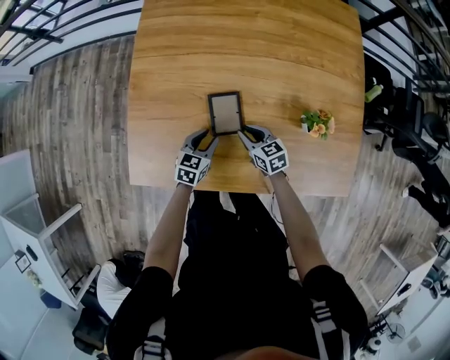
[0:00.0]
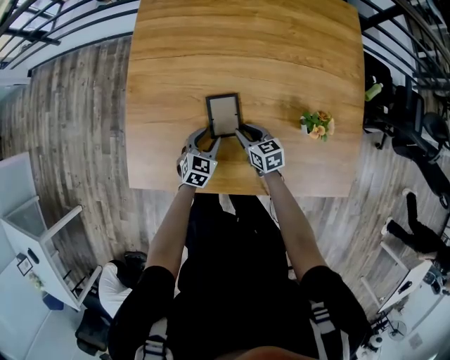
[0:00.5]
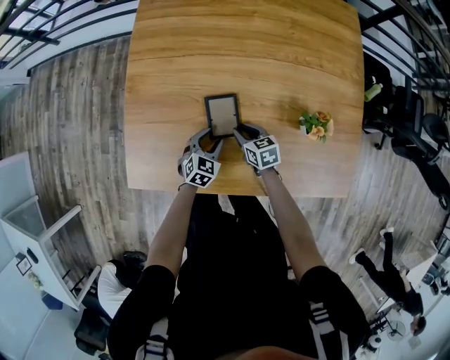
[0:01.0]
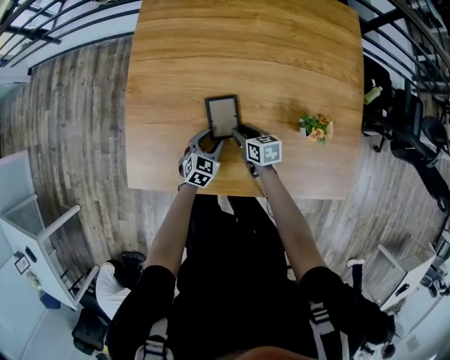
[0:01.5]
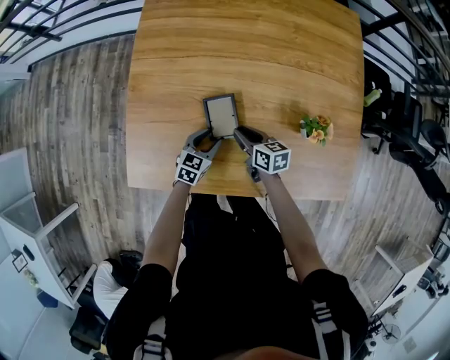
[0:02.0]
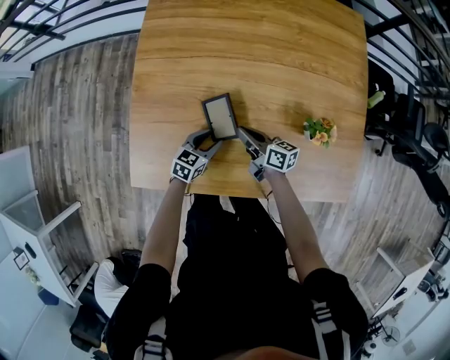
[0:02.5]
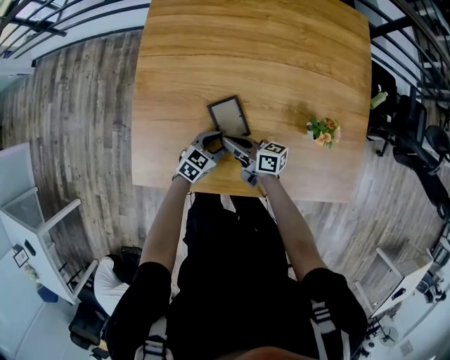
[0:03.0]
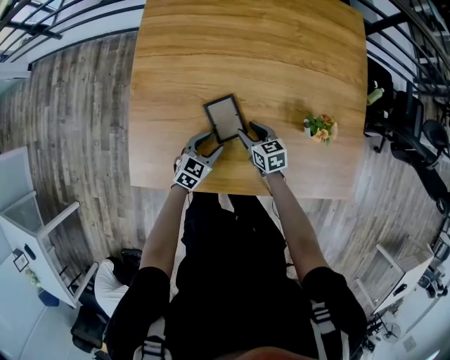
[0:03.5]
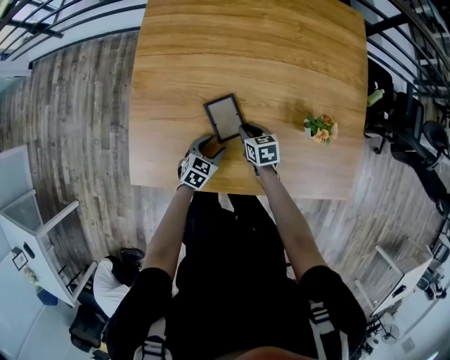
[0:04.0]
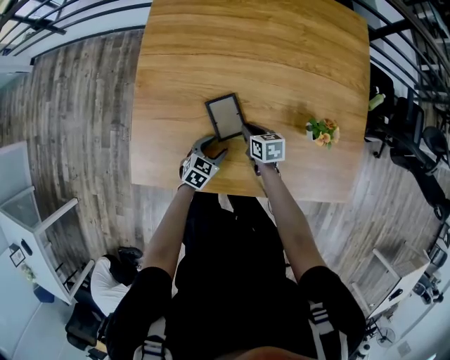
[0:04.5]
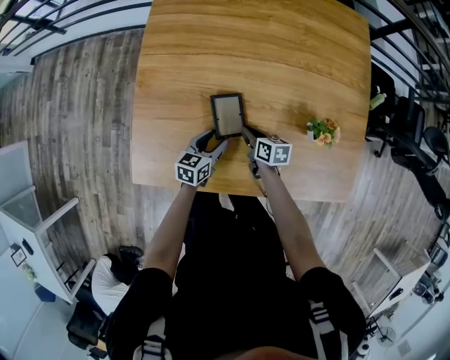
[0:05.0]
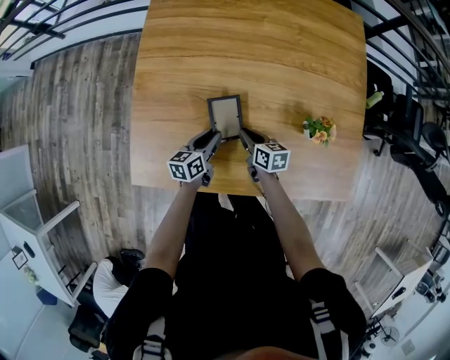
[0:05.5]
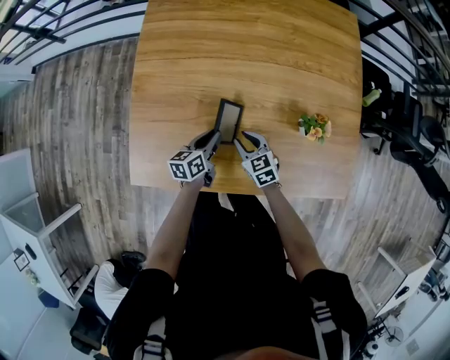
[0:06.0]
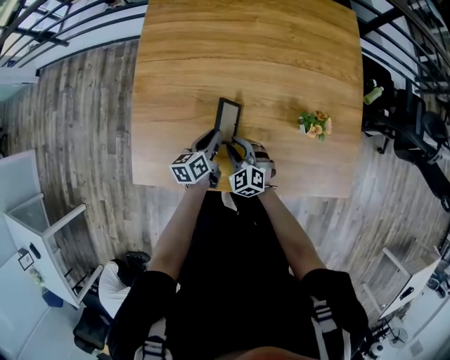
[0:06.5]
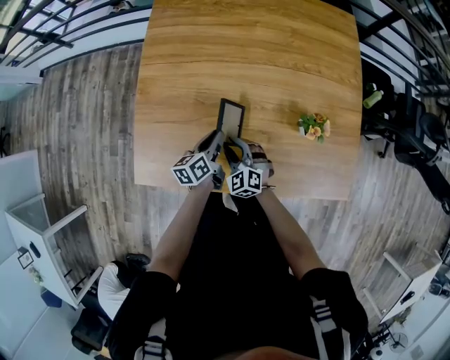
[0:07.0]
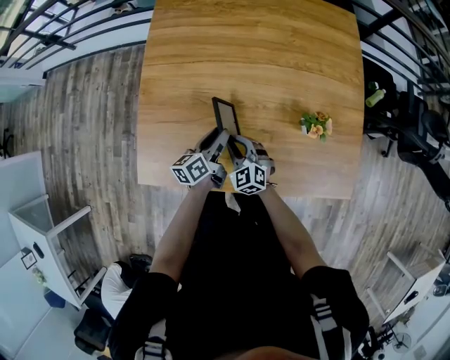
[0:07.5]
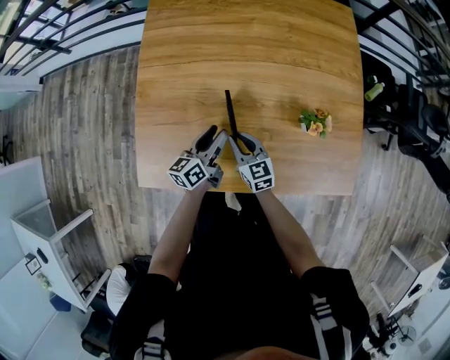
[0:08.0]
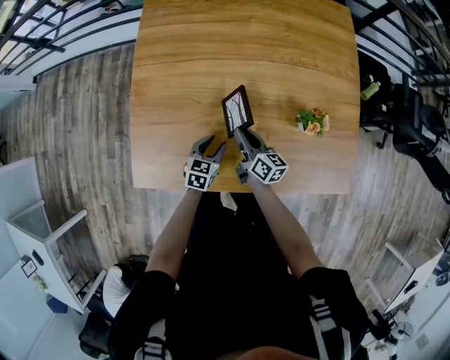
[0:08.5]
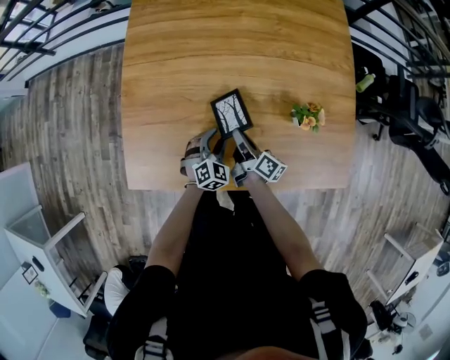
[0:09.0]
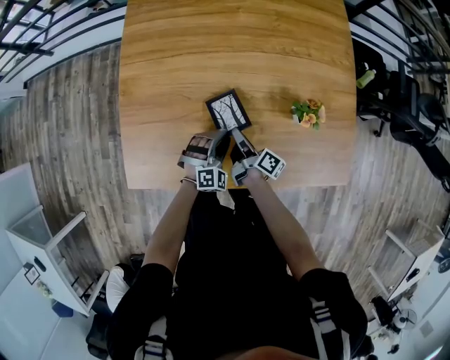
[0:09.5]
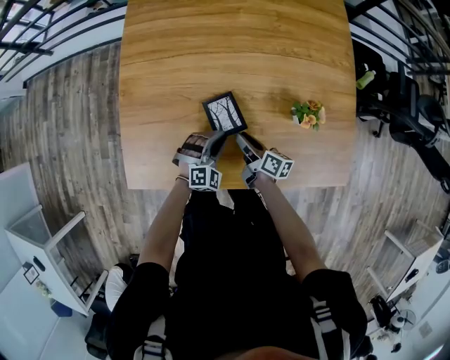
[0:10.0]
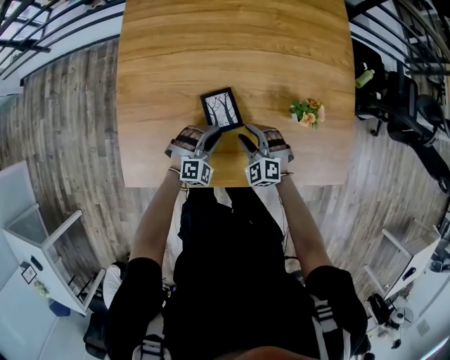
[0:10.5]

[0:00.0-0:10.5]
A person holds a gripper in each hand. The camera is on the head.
0:00.0 to 0:02.0: The right gripper changes its angle by approximately 20 degrees.
0:02.0 to 0:04.0: The right gripper moves downward, approximately 5 cm, moves some 5 cm to the left and comes back, turns by about 20 degrees, and closes, then opens again.
0:04.0 to 0:06.5: The left gripper shifts some 10 cm upward, rotates around the line of its fingers by some 50 degrees, counterclockwise from behind, and closes up. Meanwhile the right gripper travels upward and backward by about 10 cm, and rolls counterclockwise, seen from behind, by approximately 50 degrees.
0:06.5 to 0:08.5: The left gripper changes place by roughly 5 cm, turns by approximately 40 degrees, and opens, while the right gripper moves approximately 5 cm, and rolls clockwise, seen from behind, by about 80 degrees.
0:08.5 to 0:10.5: The left gripper twists approximately 70 degrees clockwise, seen from behind; the right gripper moves about 5 cm, twists approximately 90 degrees counterclockwise, seen from behind, and opens up.

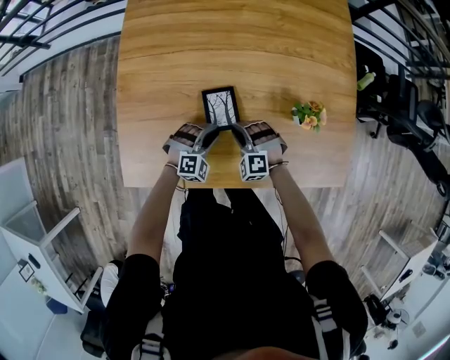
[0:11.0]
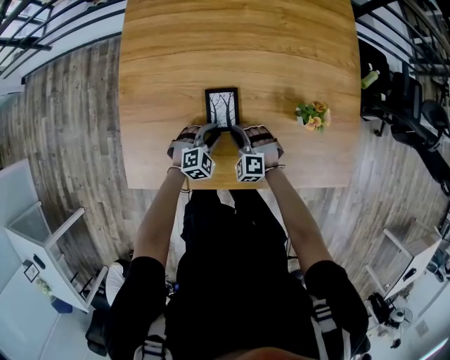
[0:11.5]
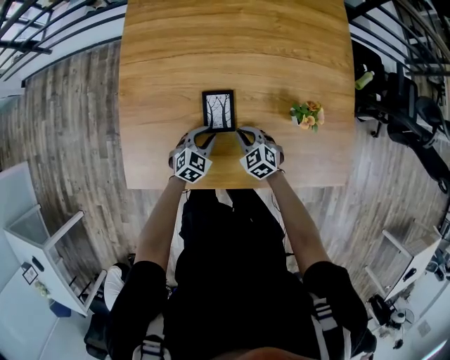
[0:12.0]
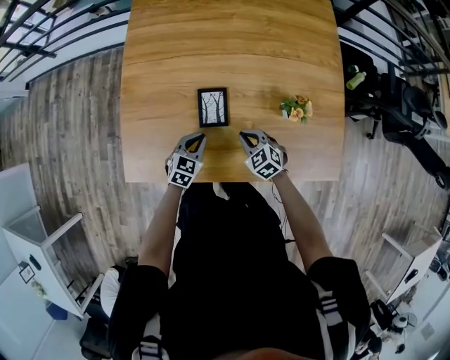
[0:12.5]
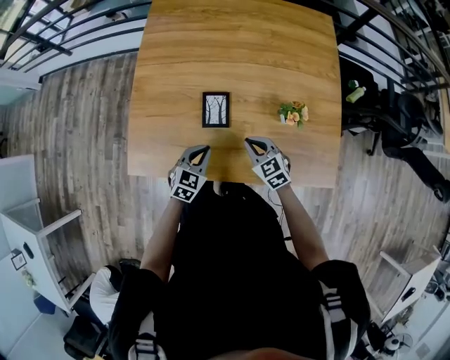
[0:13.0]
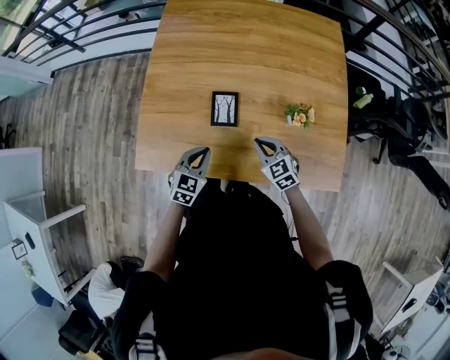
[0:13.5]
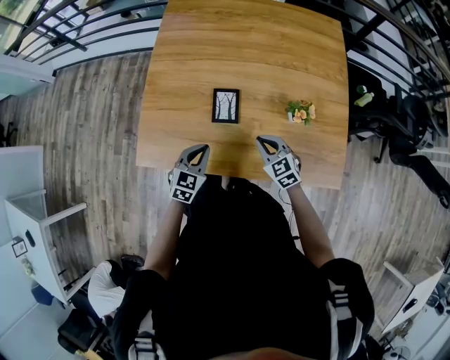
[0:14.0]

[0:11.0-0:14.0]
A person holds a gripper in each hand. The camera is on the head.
0:11.0 to 0:12.5: The right gripper travels to the right by some 5 cm, rolls clockwise, seen from behind, by roughly 40 degrees, and closes up, while the left gripper shifts by some 5 cm, twists about 50 degrees counterclockwise, seen from behind, and closes its fingers.
0:12.5 to 0:14.0: The right gripper moves upward, roughly 10 cm. Meanwhile the left gripper shifts approximately 15 cm upward and backward.

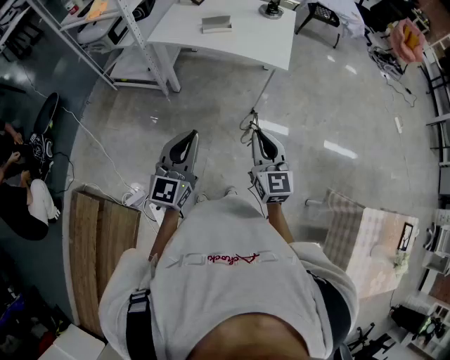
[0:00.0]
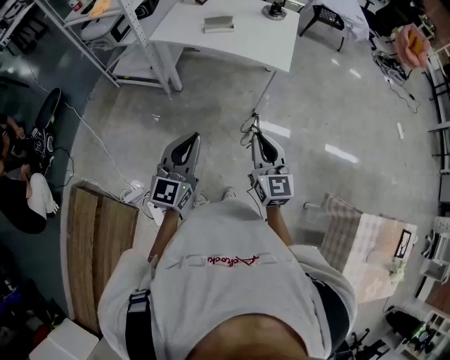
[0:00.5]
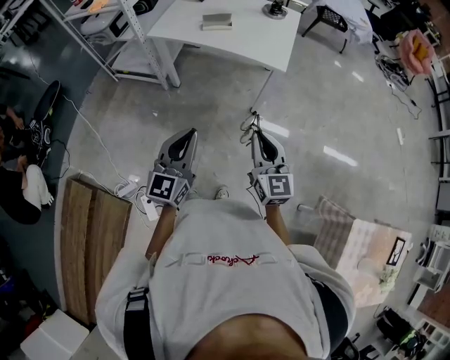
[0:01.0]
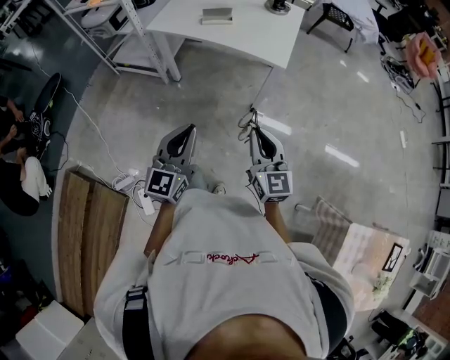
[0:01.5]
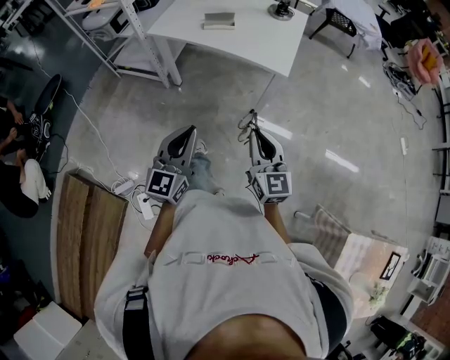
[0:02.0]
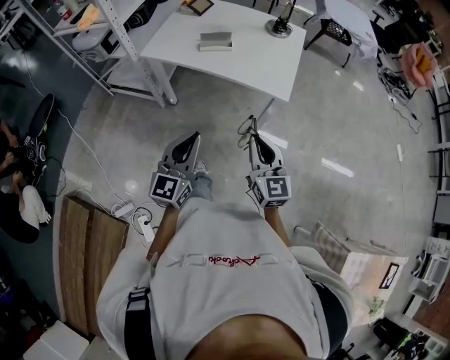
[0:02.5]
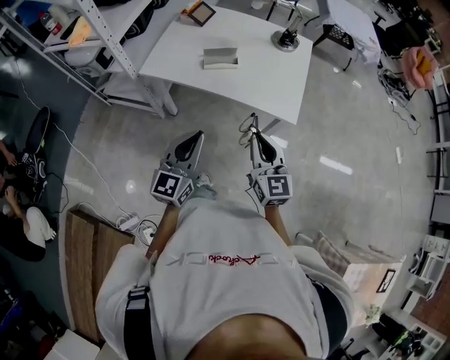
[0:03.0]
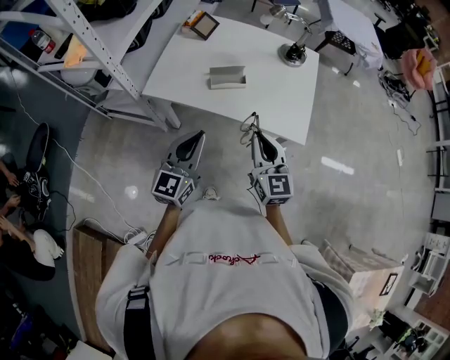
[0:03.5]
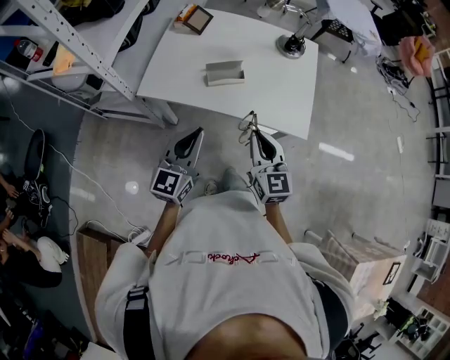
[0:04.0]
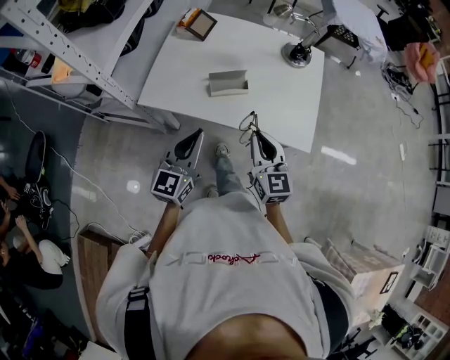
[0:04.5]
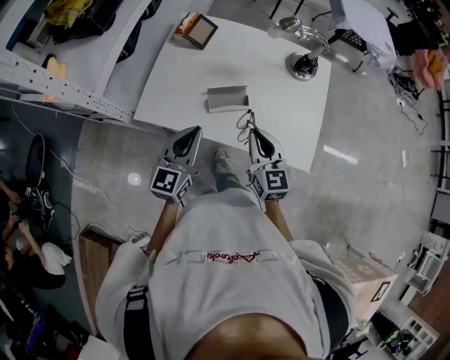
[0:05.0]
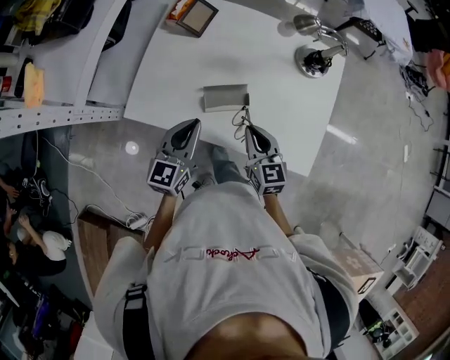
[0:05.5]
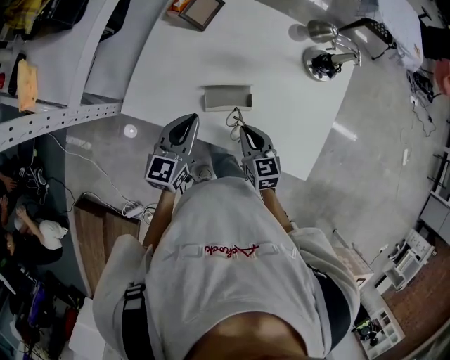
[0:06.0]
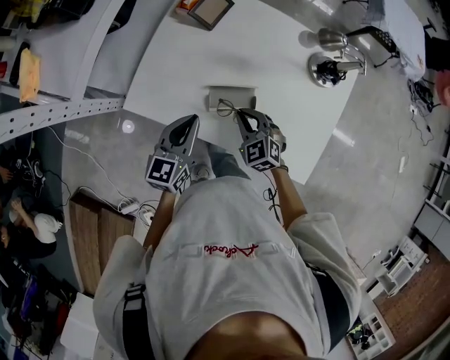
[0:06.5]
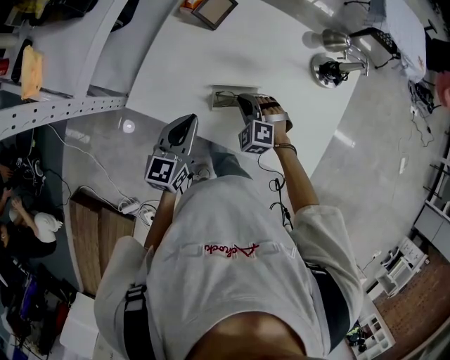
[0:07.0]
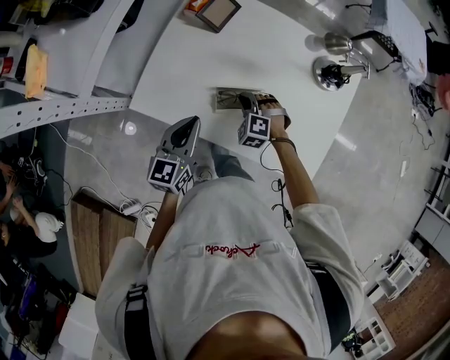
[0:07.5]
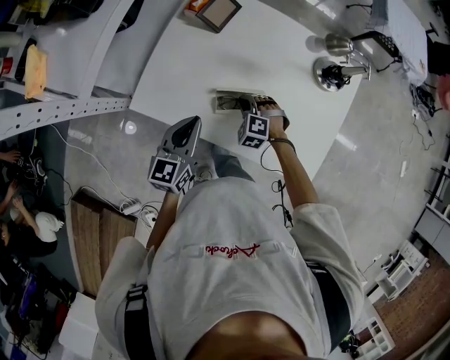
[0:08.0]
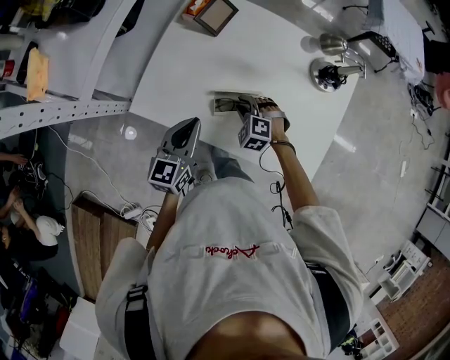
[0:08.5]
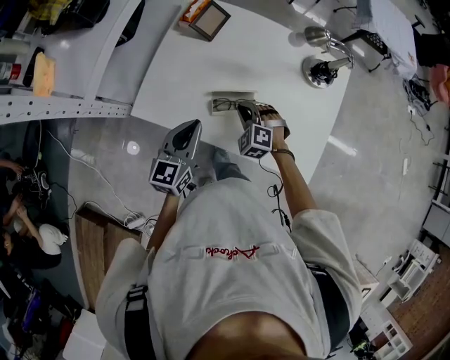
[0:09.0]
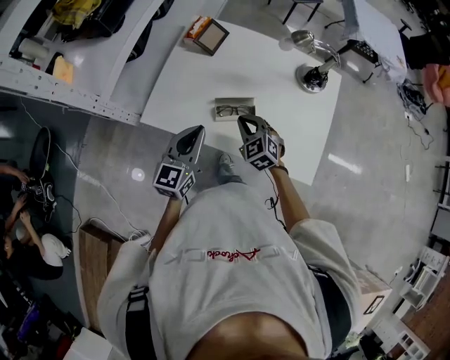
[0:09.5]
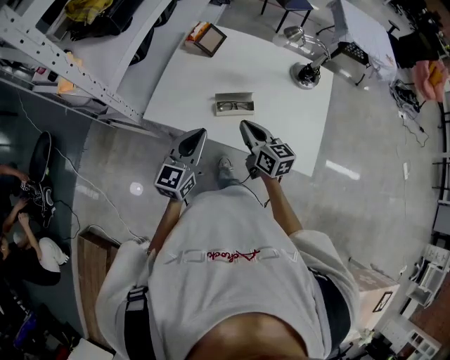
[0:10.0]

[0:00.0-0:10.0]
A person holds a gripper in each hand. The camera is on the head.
0:00.0 to 0:02.0: The left gripper travels to the right by roughly 5 cm. Meanwhile the right gripper travels to the right and forward by about 10 cm.
0:02.0 to 0:04.0: The left gripper goes about 35 cm forward. Meanwhile the right gripper travels forward and to the left by about 35 cm.
0:04.0 to 0:06.0: Both grippers travel together forward and downward, roughly 25 cm. The right gripper changes its angle by approximately 30 degrees.
0:06.0 to 0:08.0: The right gripper moves downward and forward, about 15 cm, and rotates around the line of its fingers by about 70 degrees, counterclockwise from behind.
0:08.0 to 0:10.0: The right gripper shifts about 25 cm upward and backward, rolls clockwise, seen from behind, by roughly 80 degrees, and opens and closes again. The left gripper moves backward and upward, approximately 10 cm.

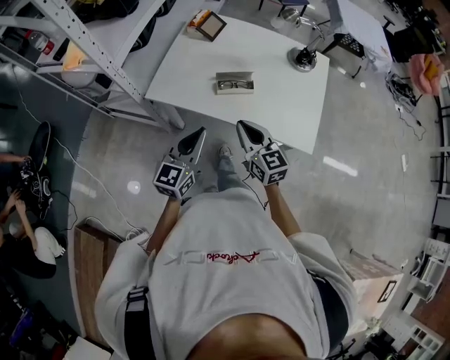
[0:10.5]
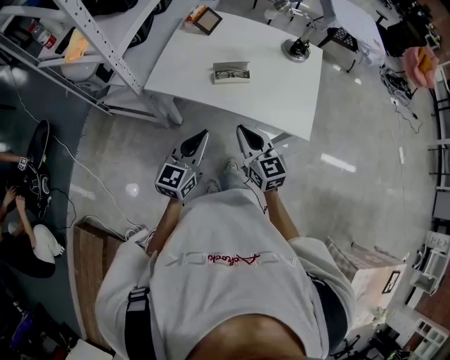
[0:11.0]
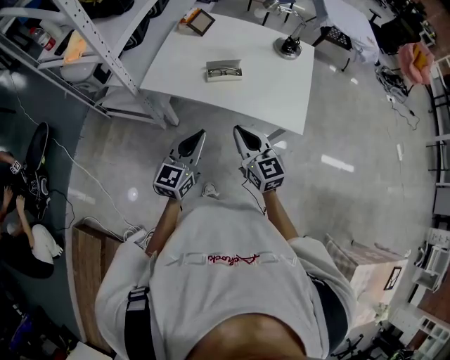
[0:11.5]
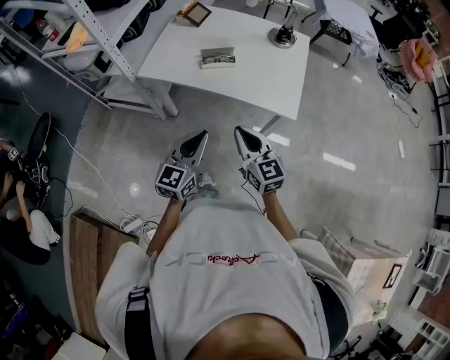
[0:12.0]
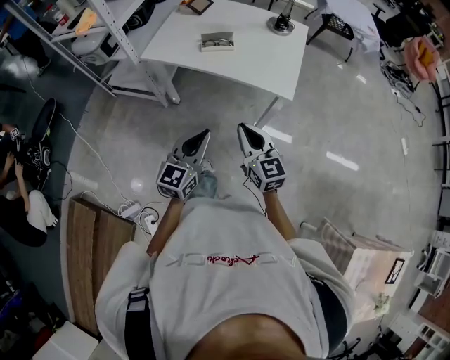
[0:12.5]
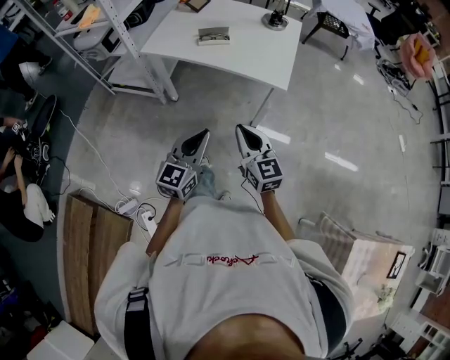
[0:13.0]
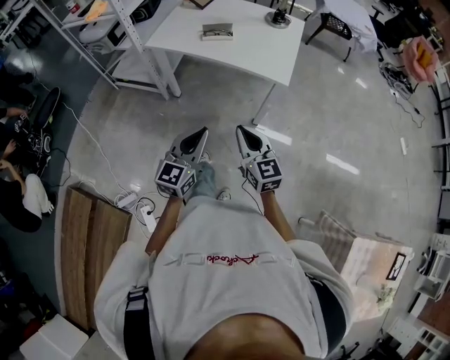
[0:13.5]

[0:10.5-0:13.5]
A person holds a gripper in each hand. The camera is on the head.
0:10.5 to 0:12.0: The left gripper goes about 15 cm backward and to the right; the right gripper moves backward, about 15 cm.
0:12.0 to 0:13.5: The grippers both shift backward by some 20 cm.
